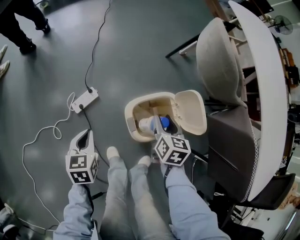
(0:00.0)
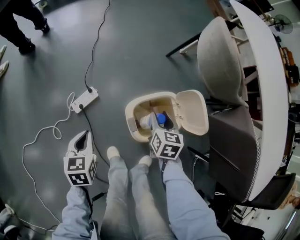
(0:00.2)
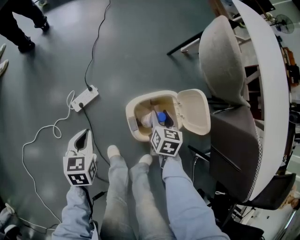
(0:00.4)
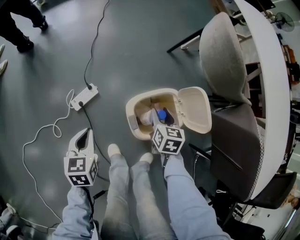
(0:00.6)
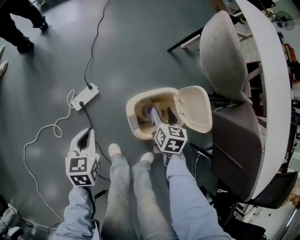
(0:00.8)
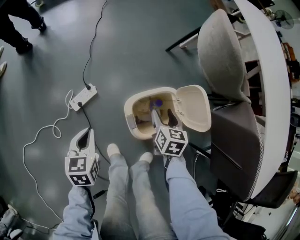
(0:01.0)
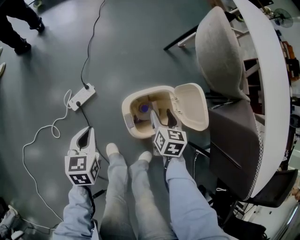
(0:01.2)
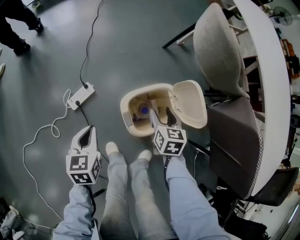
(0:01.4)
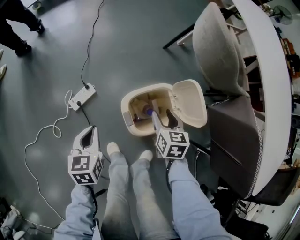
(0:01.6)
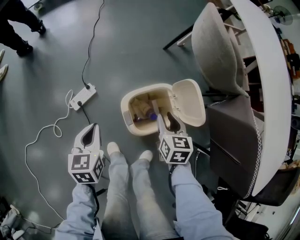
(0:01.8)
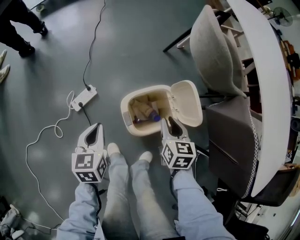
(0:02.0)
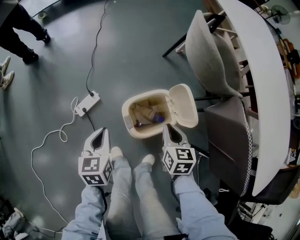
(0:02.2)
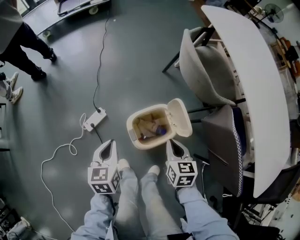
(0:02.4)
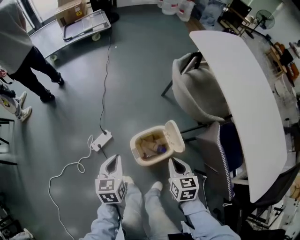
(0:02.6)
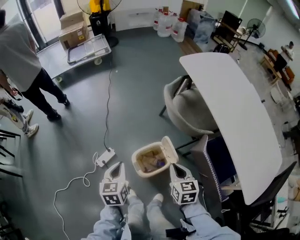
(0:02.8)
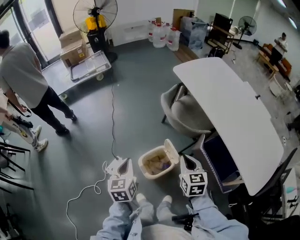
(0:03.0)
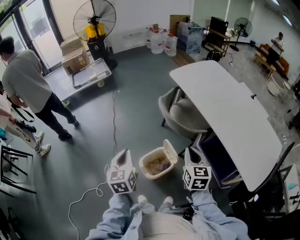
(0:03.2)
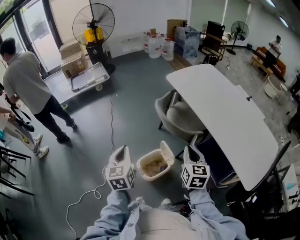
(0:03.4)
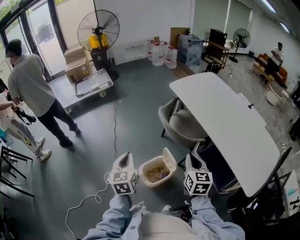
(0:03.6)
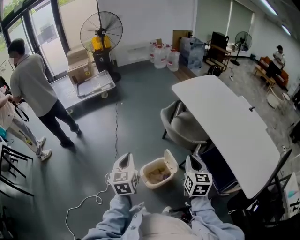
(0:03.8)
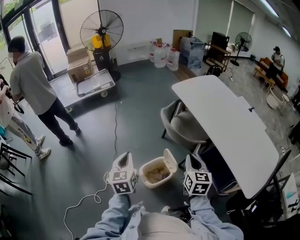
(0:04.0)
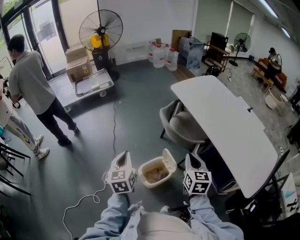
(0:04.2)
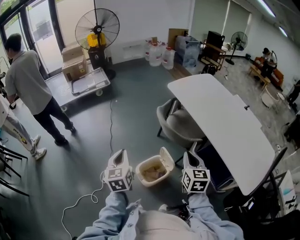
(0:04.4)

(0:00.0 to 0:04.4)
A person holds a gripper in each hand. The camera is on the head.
0:00.0 - 0:01.4: The right gripper shifts by about 5 cm.
0:01.4 - 0:03.0: The grippers both shift upward by approximately 40 cm. The right gripper closes up.
0:03.0 - 0:04.4: Both grippers move upward, some 10 cm.

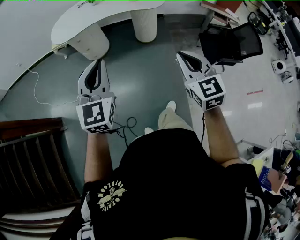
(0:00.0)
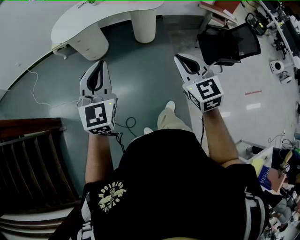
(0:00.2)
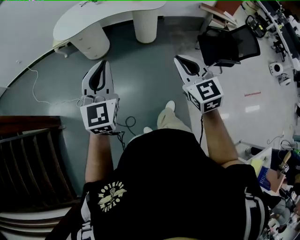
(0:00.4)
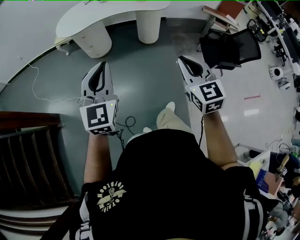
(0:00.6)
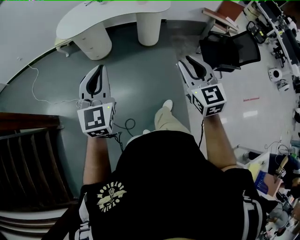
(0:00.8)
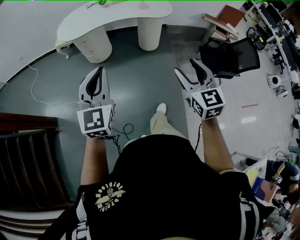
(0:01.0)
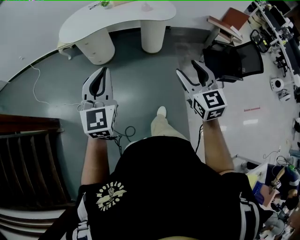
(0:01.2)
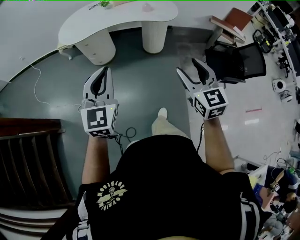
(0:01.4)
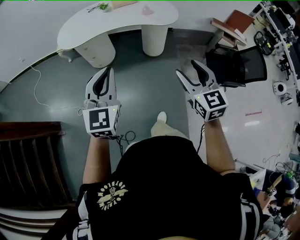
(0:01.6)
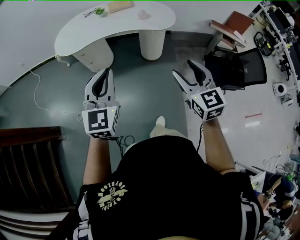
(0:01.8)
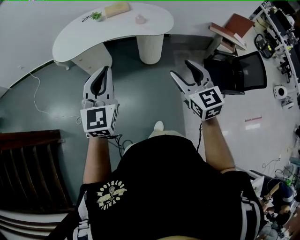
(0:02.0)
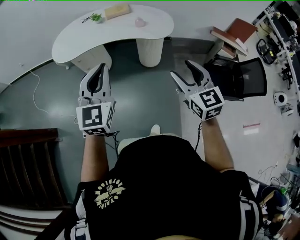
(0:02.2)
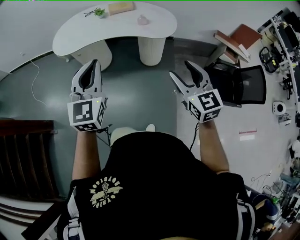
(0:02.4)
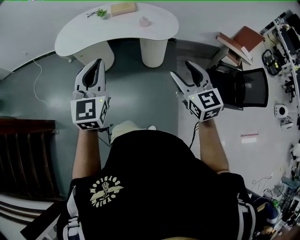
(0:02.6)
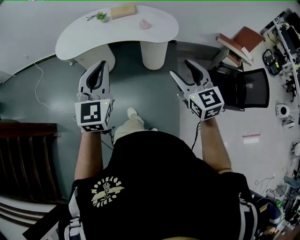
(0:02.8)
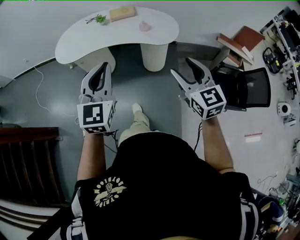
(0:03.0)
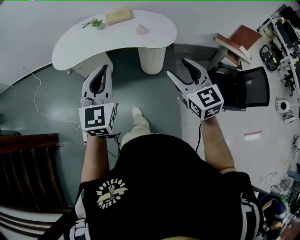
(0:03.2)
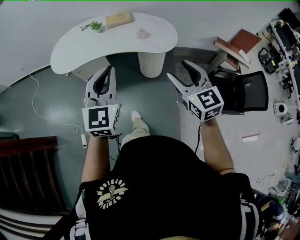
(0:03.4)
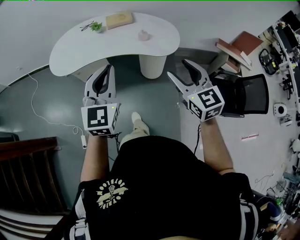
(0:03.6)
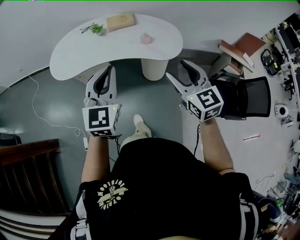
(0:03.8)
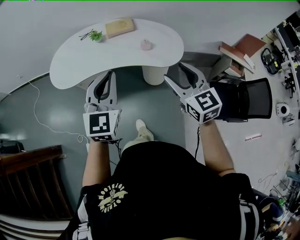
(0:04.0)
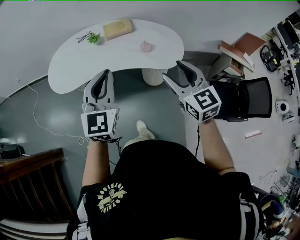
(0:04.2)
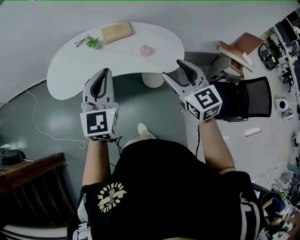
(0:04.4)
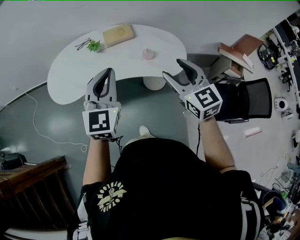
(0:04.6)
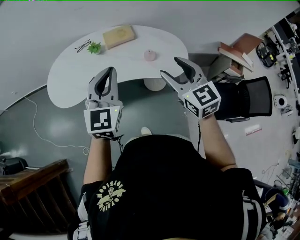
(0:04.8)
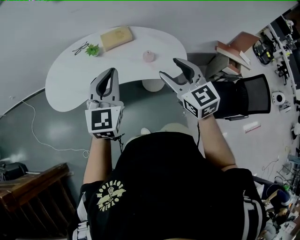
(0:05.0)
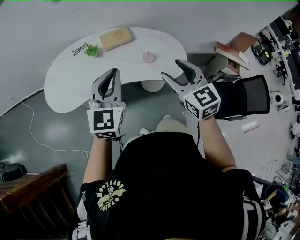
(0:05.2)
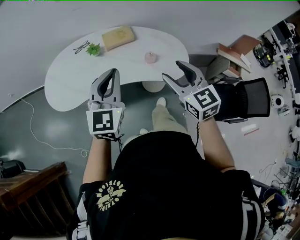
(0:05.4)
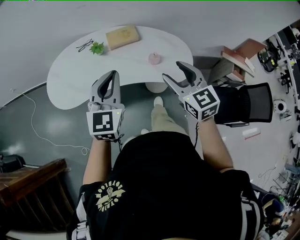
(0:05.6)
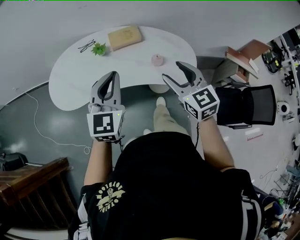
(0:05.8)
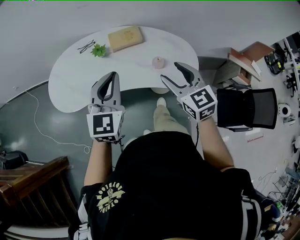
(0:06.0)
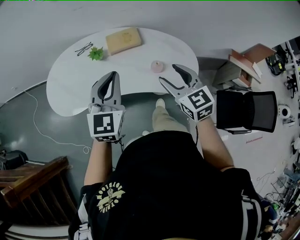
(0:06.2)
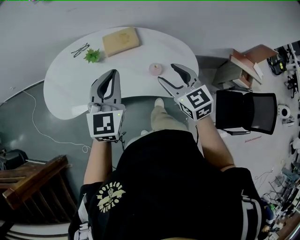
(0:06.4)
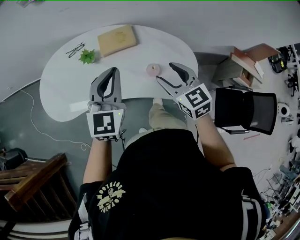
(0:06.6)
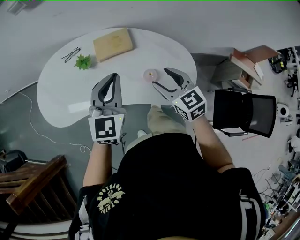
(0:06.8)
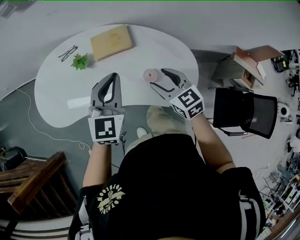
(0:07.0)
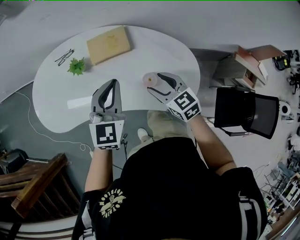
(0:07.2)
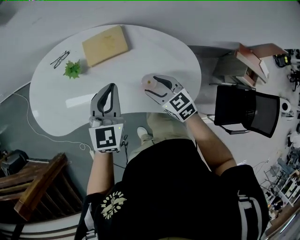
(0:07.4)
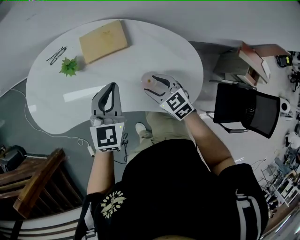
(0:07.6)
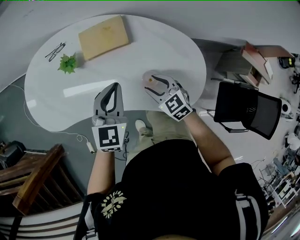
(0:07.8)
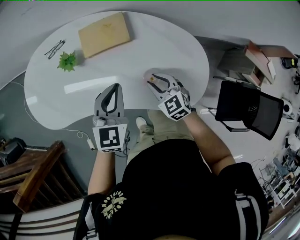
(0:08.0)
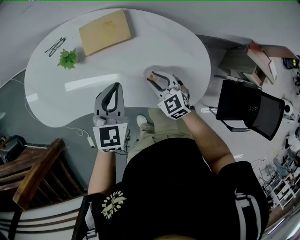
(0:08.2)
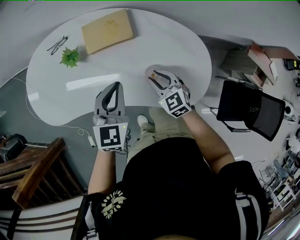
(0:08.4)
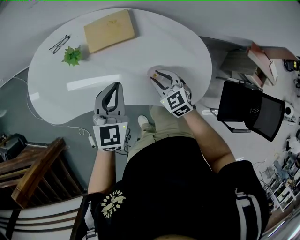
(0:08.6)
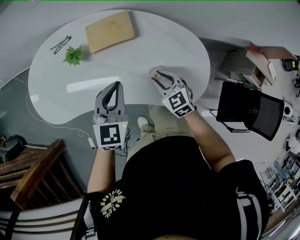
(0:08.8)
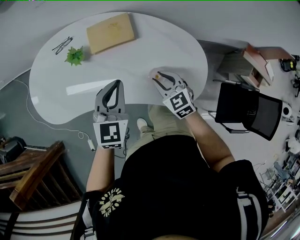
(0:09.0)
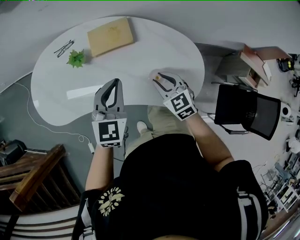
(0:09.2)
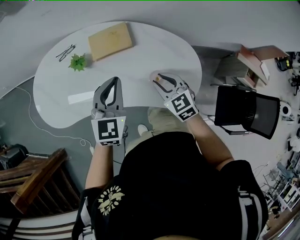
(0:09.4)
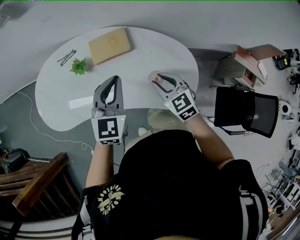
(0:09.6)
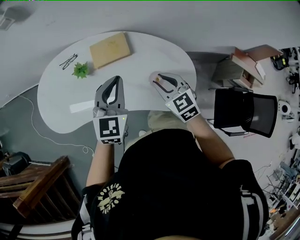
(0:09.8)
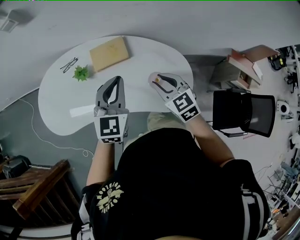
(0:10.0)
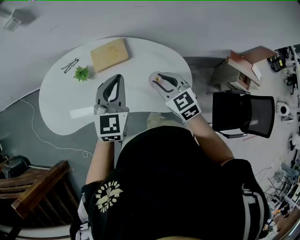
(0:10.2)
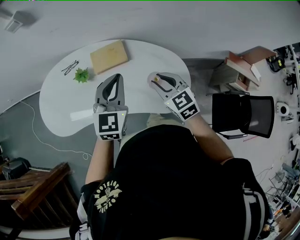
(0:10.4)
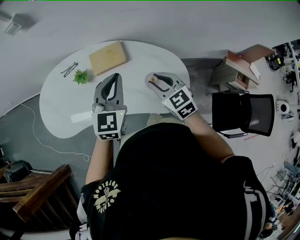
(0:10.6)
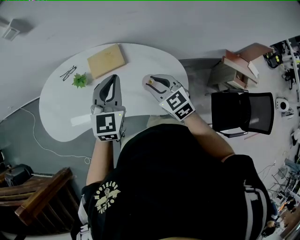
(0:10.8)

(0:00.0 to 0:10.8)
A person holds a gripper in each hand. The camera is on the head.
0:00.0 - 0:01.6: Both grippers move forward, about 10 cm. The right gripper opens up.
0:01.6 - 0:03.0: Both grippers move forward and to the right, about 20 cm.
0:03.0 - 0:04.6: The two grippers go some 30 cm forward.
0:04.6 - 0:06.2: The left gripper heads forward, covering some 15 cm, while the right gripper goes some 15 cm forward and downward.
0:06.2 - 0:07.8: The right gripper travels downward and forward by about 30 cm, and turns by approximately 20 degrees. Meanwhile the left gripper travels downward, forward and to the right by approximately 25 cm.
0:07.8 - 0:09.2: The left gripper moves some 5 cm, while the right gripper travels upward by about 5 cm, and closes its fingers.
0:09.2 - 0:10.8: The grippers both shift upward by about 10 cm.

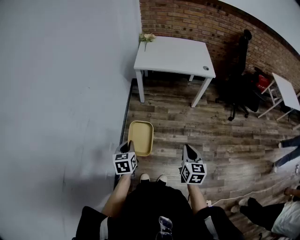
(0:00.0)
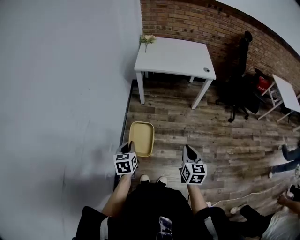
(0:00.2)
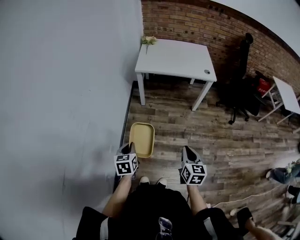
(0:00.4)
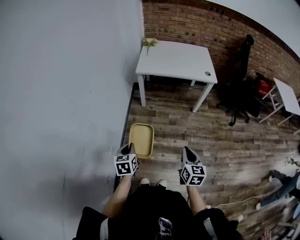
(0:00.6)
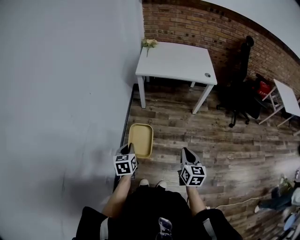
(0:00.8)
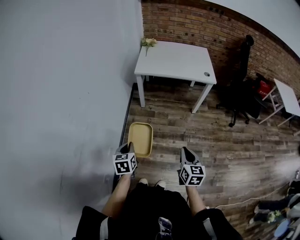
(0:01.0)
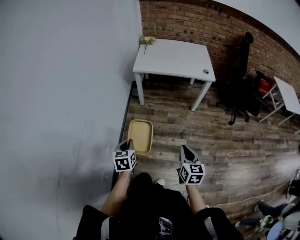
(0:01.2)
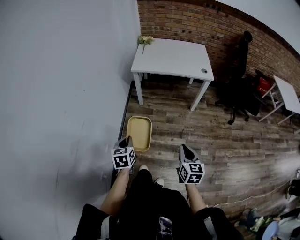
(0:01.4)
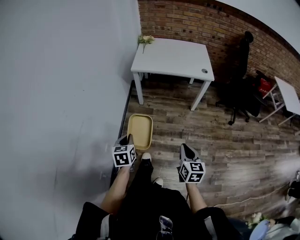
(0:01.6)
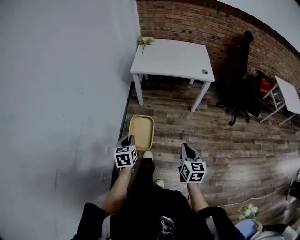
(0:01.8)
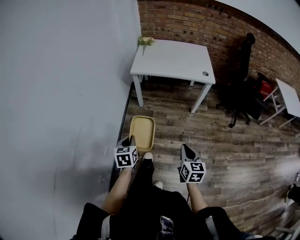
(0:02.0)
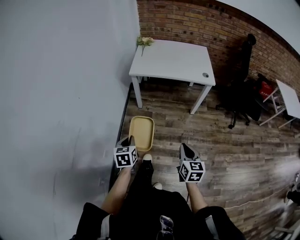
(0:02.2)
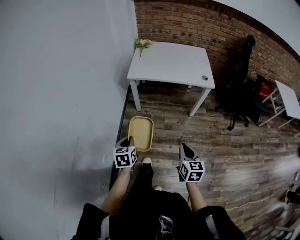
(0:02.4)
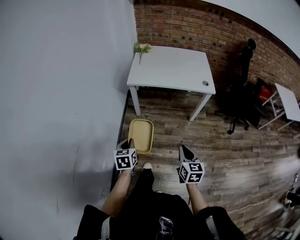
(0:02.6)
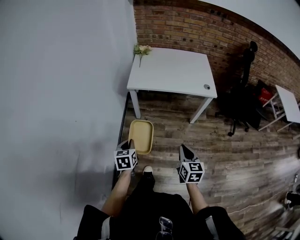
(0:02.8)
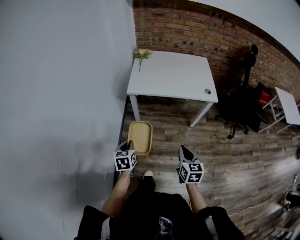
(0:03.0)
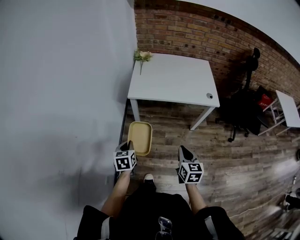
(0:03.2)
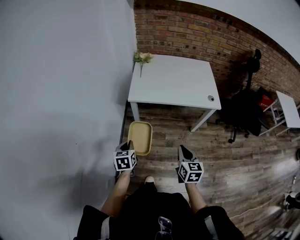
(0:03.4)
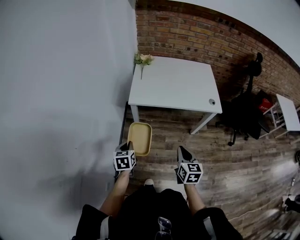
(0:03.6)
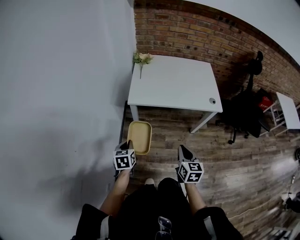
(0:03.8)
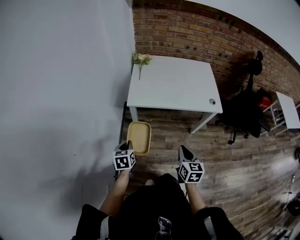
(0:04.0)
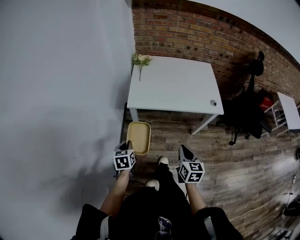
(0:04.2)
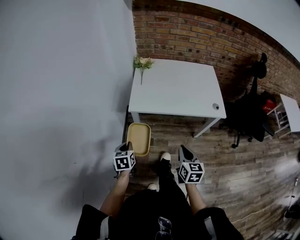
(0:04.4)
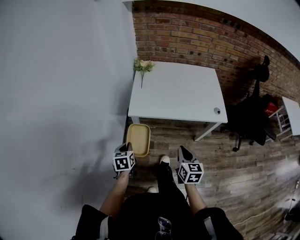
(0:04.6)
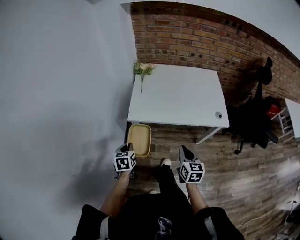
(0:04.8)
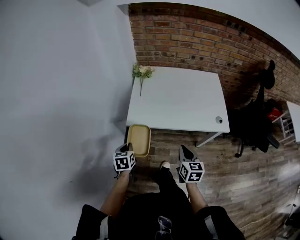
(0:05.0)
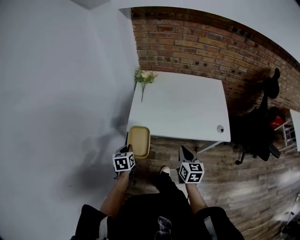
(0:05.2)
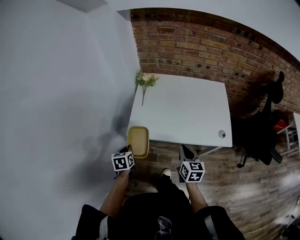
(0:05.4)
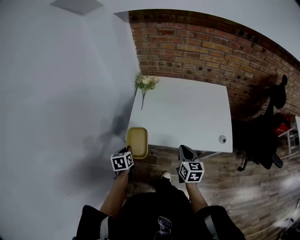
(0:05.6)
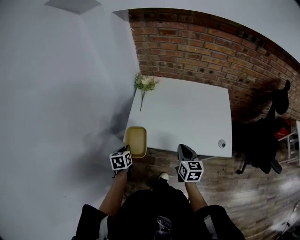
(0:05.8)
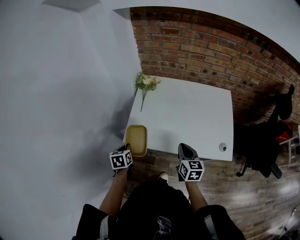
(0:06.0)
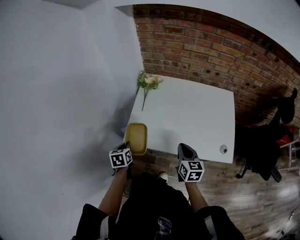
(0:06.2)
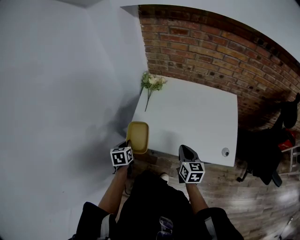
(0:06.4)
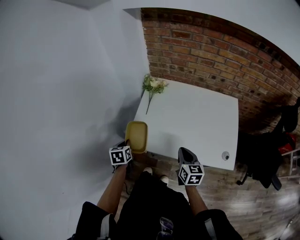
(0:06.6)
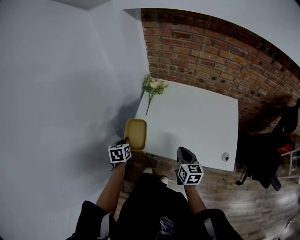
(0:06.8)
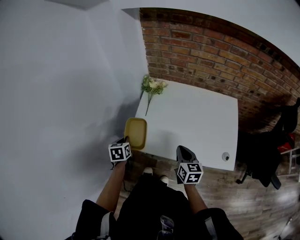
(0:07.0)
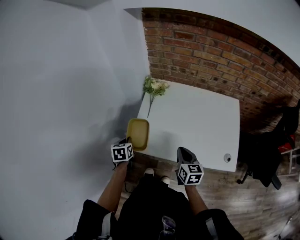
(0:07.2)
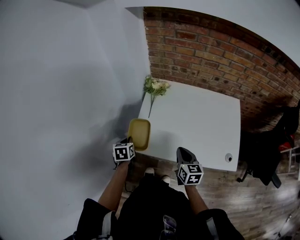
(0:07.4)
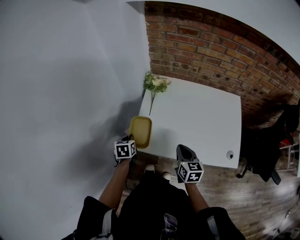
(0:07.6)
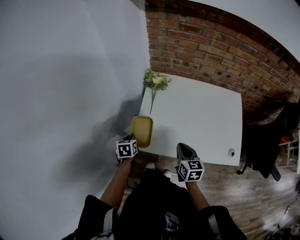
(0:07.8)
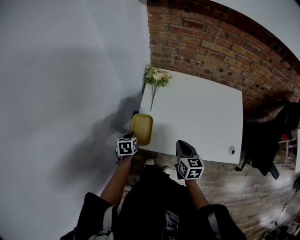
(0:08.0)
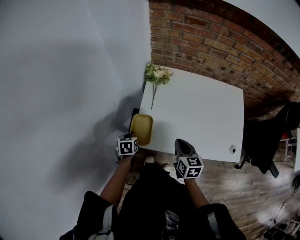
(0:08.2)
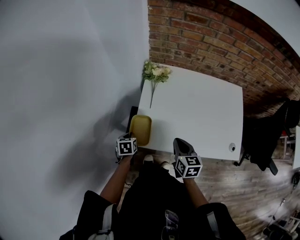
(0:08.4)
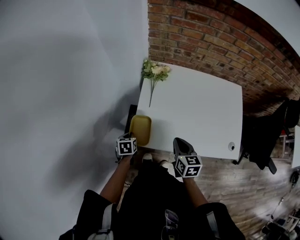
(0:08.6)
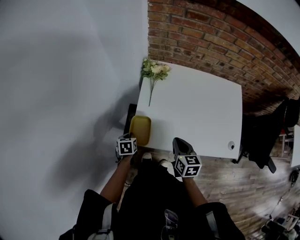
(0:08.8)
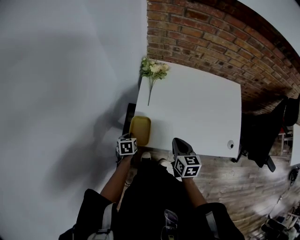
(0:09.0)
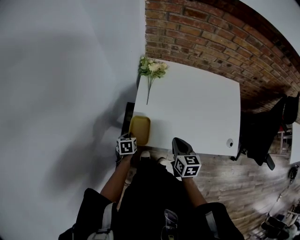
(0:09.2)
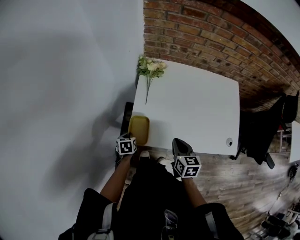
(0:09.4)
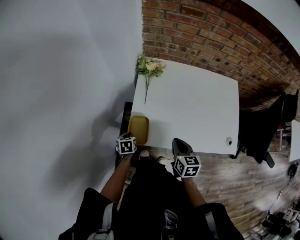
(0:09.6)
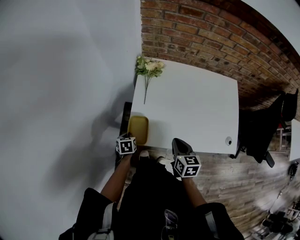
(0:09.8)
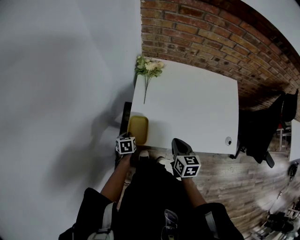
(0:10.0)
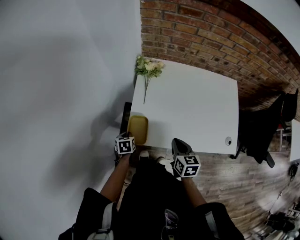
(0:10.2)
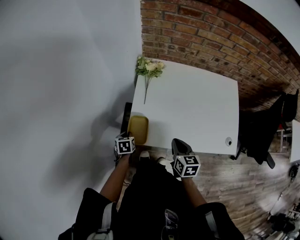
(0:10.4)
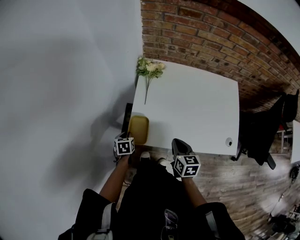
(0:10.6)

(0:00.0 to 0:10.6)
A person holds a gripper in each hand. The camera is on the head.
0:00.0 - 0:01.6: The left gripper changes place by roughly 5 cm. Meanwhile the right gripper changes place by approximately 5 cm.
0:01.6 - 0:03.0: The grippers both shift forward by roughly 25 cm.
0:03.0 - 0:04.6: Both grippers move forward, some 20 cm.
0:04.6 - 0:06.0: Both grippers travel together forward, about 25 cm.
0:06.0 - 0:07.6: The right gripper is displaced forward and to the left by some 10 cm. The left gripper heads forward, covering about 10 cm.
0:07.6 - 0:09.0: The left gripper moves downward, about 10 cm; the right gripper shifts by about 5 cm.
0:09.0 - 0:10.6: The grippers make only small movements.
